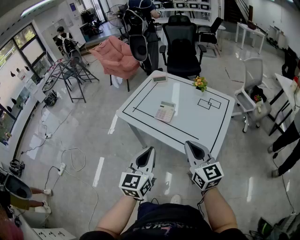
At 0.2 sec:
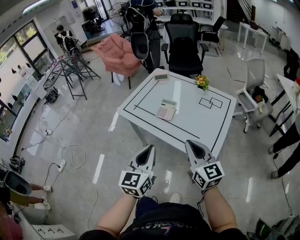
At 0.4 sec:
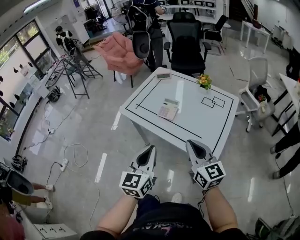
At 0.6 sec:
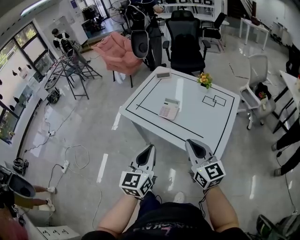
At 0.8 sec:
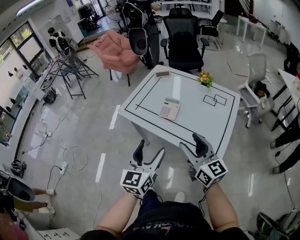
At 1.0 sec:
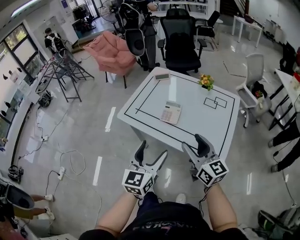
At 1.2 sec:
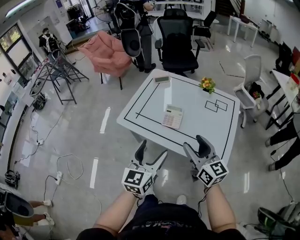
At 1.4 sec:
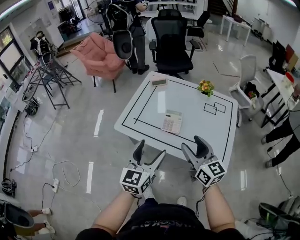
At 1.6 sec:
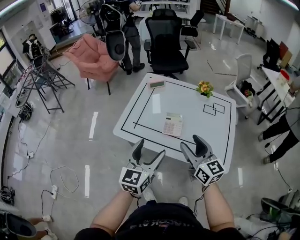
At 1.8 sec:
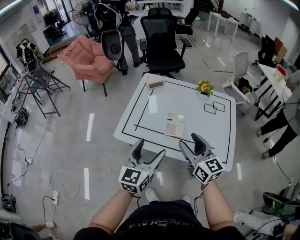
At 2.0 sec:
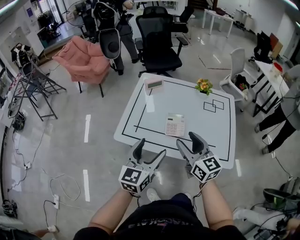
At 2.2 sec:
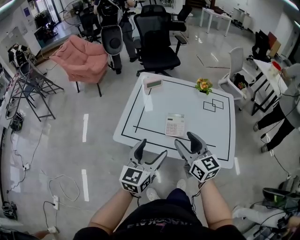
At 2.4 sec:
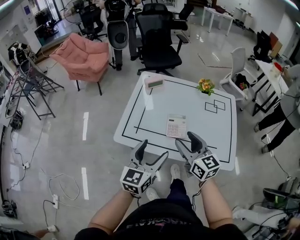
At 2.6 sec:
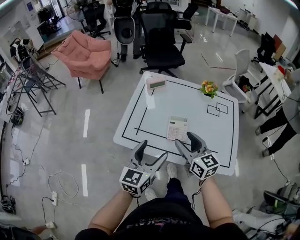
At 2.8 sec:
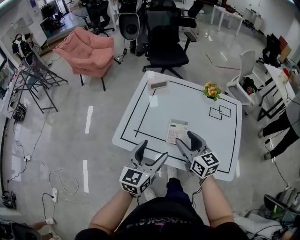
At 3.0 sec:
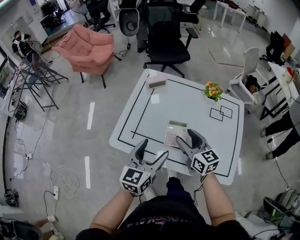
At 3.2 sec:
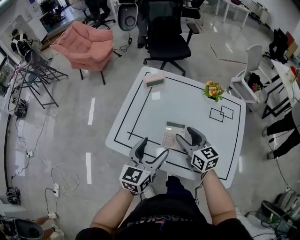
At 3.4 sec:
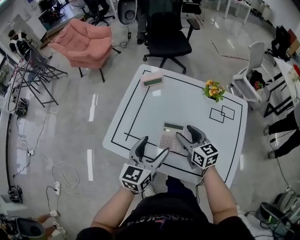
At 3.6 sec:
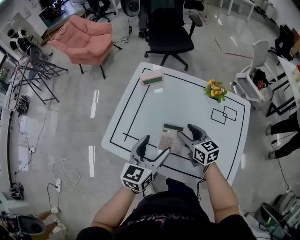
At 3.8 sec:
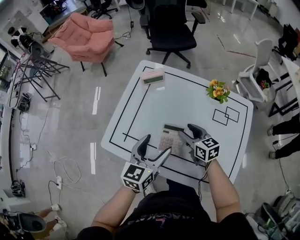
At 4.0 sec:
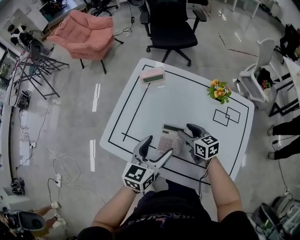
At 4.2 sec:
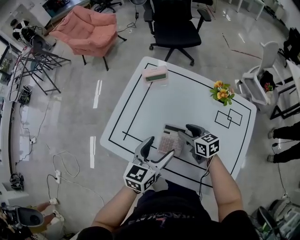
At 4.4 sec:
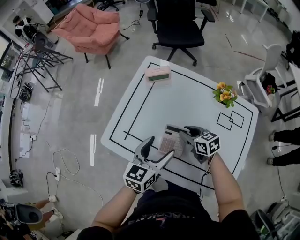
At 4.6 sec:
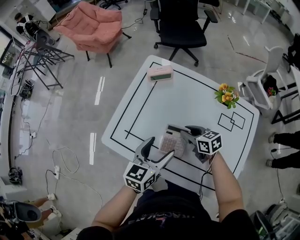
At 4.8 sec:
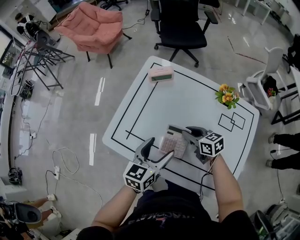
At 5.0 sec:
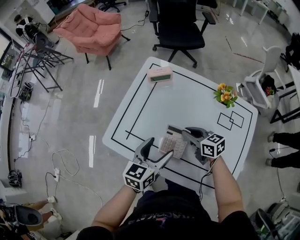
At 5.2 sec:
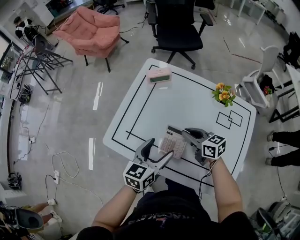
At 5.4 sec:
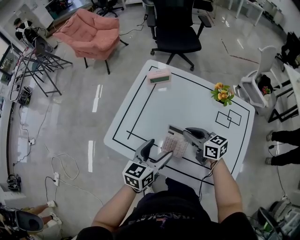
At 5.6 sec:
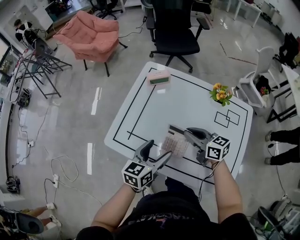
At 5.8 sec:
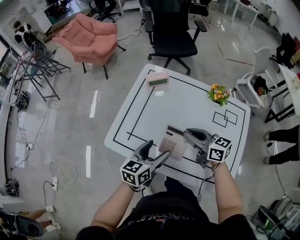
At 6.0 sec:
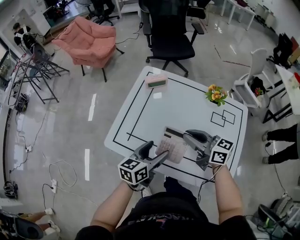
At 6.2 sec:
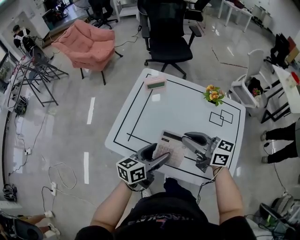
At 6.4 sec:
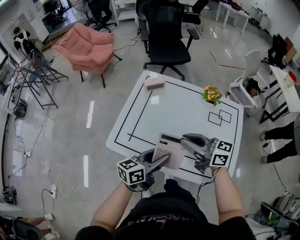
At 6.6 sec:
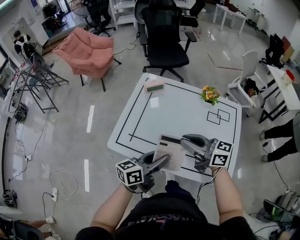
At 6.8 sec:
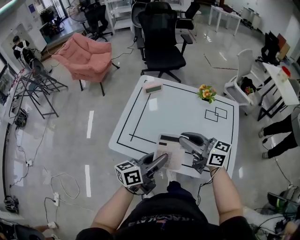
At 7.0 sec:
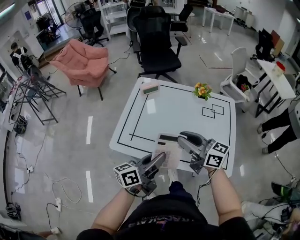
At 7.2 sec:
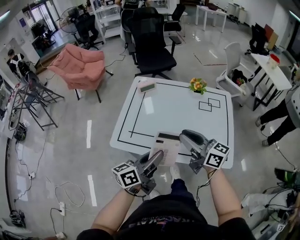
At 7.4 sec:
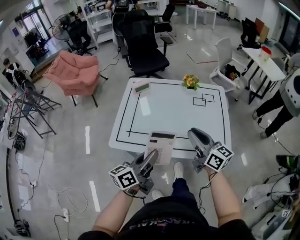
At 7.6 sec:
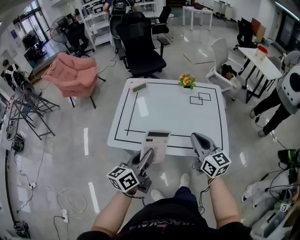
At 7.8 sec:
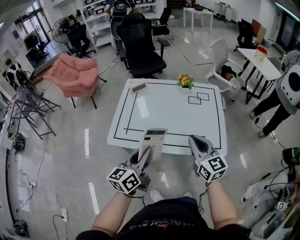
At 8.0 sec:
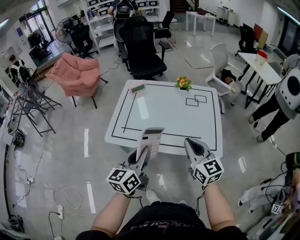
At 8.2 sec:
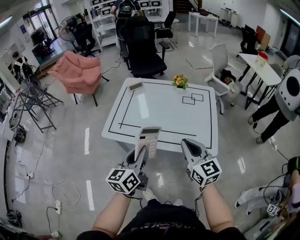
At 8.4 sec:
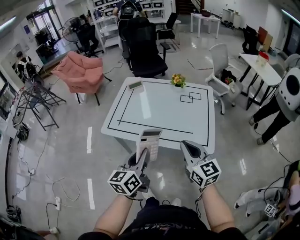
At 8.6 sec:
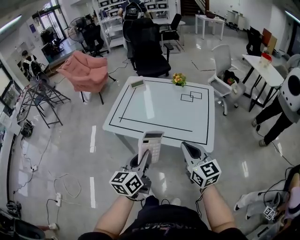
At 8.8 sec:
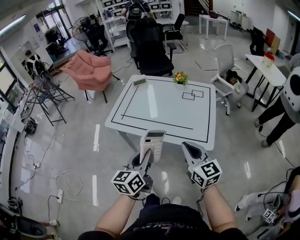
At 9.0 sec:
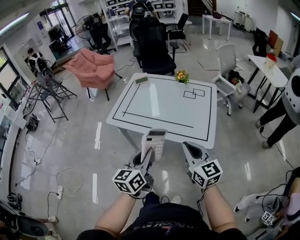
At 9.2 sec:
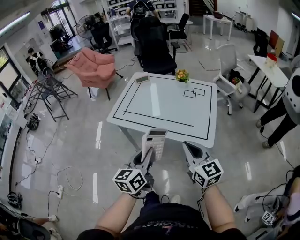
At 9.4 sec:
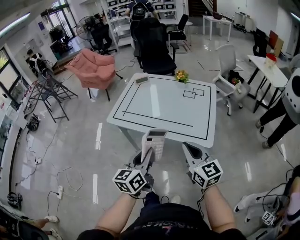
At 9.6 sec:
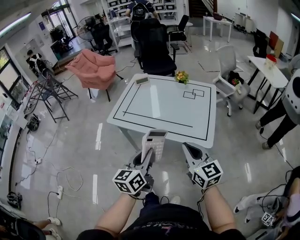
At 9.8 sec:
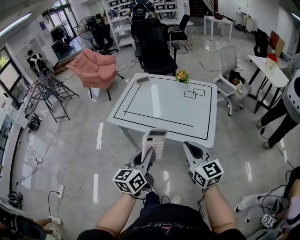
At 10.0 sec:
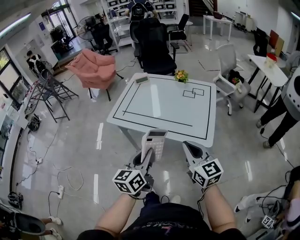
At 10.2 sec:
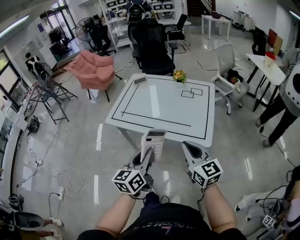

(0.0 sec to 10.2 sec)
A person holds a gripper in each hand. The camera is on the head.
0.0 sec - 1.4 sec: The two grippers go approximately 15 cm forward and to the left. The right gripper opens its fingers; the left gripper opens up.
1.4 sec - 3.0 sec: The right gripper goes approximately 20 cm forward and downward, while the left gripper is displaced forward by approximately 15 cm.
3.0 sec - 4.4 sec: The right gripper moves downward and forward, some 20 cm, rotates about 30 degrees, and closes up. Meanwhile the left gripper is displaced forward, to the right and downward by roughly 10 cm.
4.4 sec - 5.8 sec: The right gripper heads upward, covering some 15 cm, and turns by about 20 degrees.
5.8 sec - 7.2 sec: The two grippers go about 20 cm backward and upward. The left gripper swivels about 30 degrees, and closes its fingers, while the right gripper swivels about 20 degrees.
7.2 sec - 8.8 sec: The two grippers go some 25 cm backward and to the right. The left gripper rotates roughly 30 degrees; the right gripper turns by about 30 degrees.
8.8 sec - 10.2 sec: There are only small adjustments of the grippers.

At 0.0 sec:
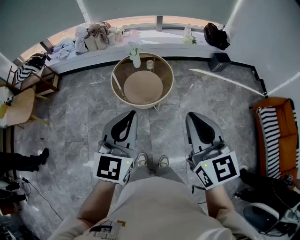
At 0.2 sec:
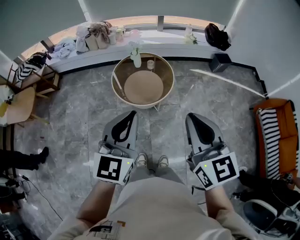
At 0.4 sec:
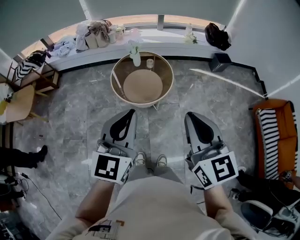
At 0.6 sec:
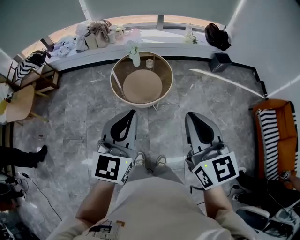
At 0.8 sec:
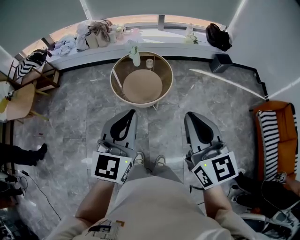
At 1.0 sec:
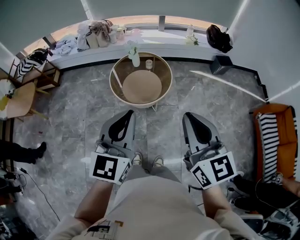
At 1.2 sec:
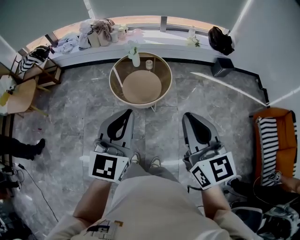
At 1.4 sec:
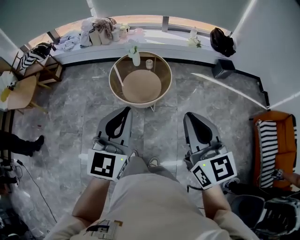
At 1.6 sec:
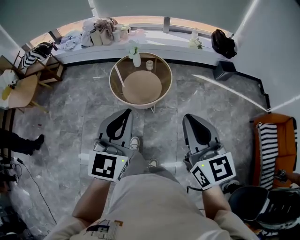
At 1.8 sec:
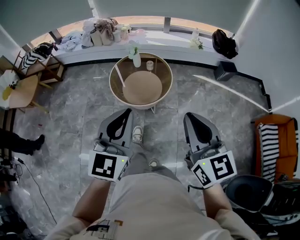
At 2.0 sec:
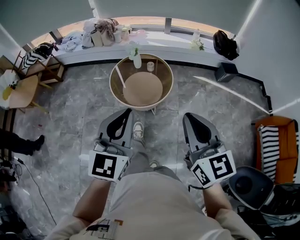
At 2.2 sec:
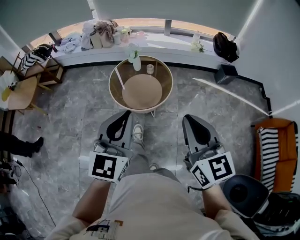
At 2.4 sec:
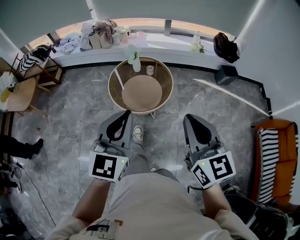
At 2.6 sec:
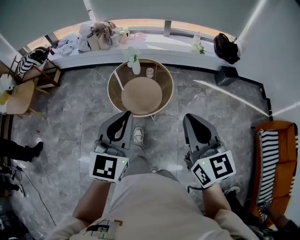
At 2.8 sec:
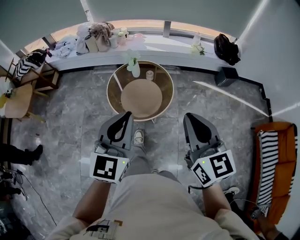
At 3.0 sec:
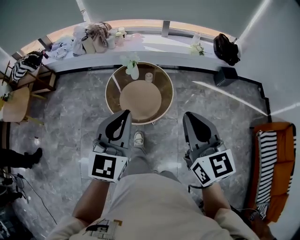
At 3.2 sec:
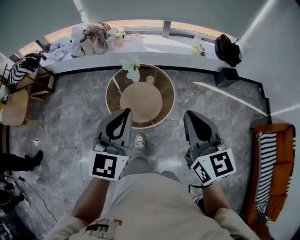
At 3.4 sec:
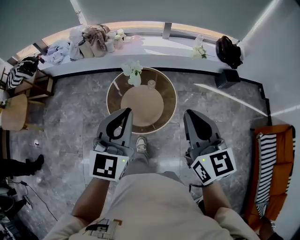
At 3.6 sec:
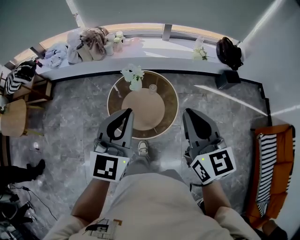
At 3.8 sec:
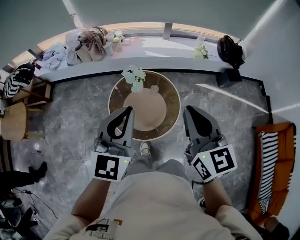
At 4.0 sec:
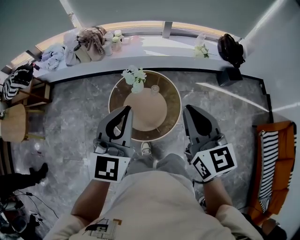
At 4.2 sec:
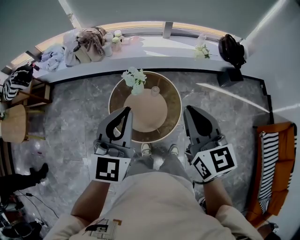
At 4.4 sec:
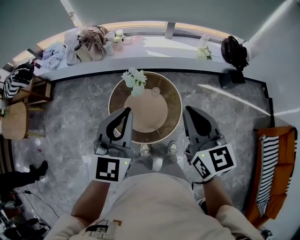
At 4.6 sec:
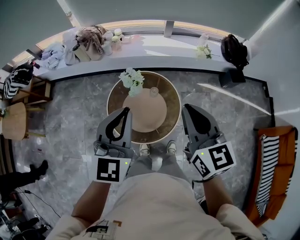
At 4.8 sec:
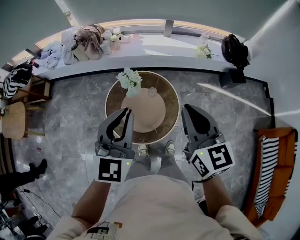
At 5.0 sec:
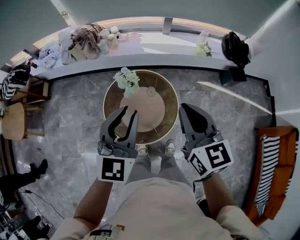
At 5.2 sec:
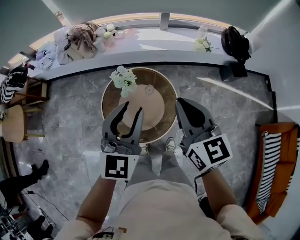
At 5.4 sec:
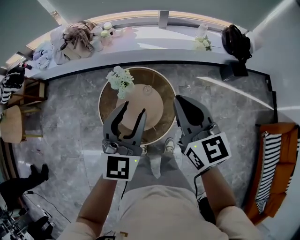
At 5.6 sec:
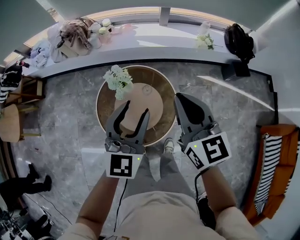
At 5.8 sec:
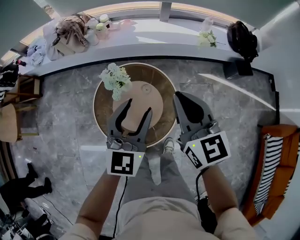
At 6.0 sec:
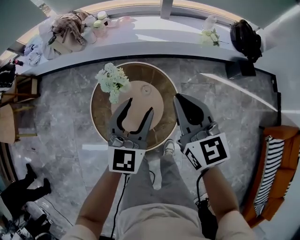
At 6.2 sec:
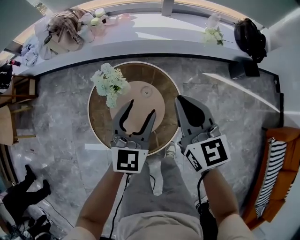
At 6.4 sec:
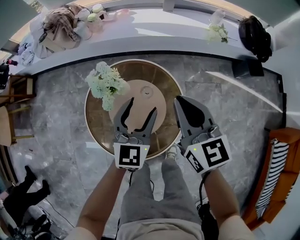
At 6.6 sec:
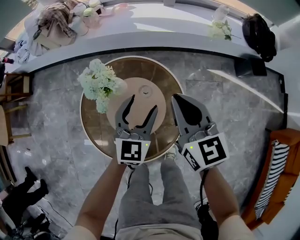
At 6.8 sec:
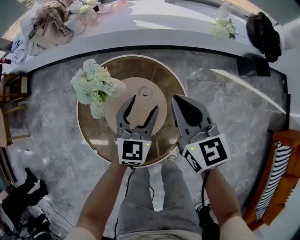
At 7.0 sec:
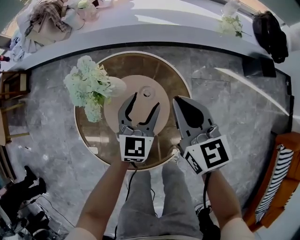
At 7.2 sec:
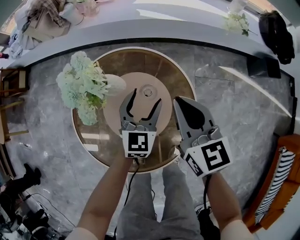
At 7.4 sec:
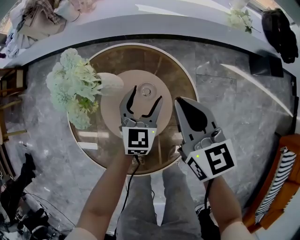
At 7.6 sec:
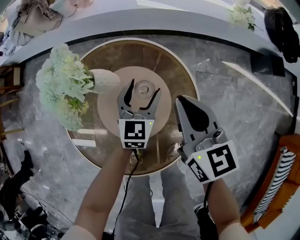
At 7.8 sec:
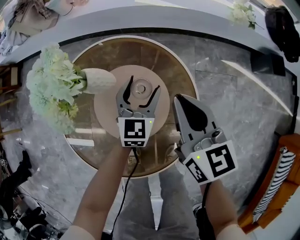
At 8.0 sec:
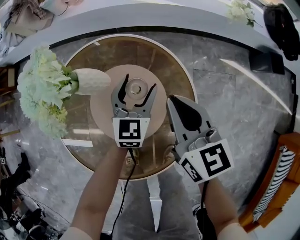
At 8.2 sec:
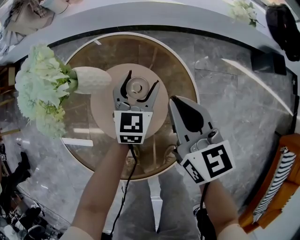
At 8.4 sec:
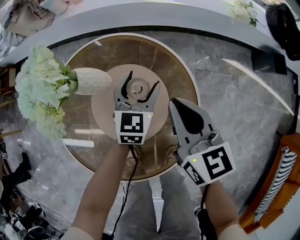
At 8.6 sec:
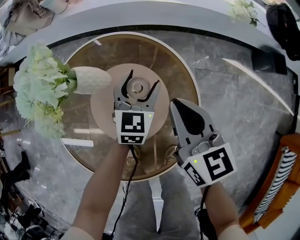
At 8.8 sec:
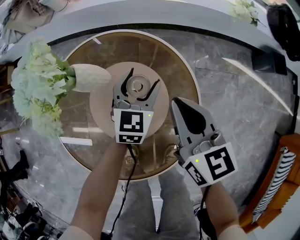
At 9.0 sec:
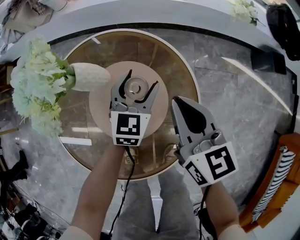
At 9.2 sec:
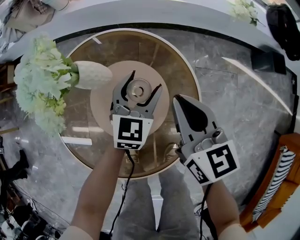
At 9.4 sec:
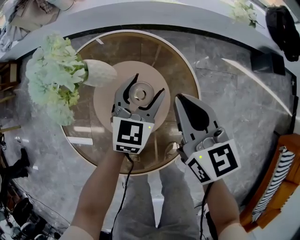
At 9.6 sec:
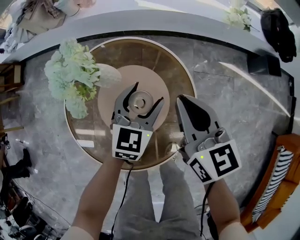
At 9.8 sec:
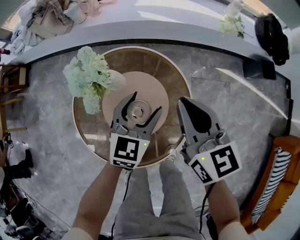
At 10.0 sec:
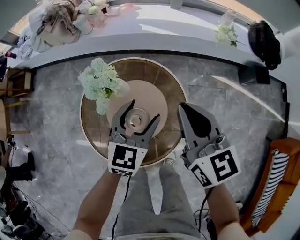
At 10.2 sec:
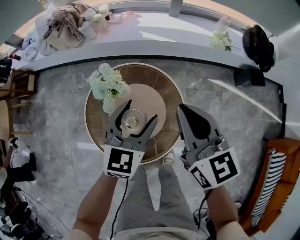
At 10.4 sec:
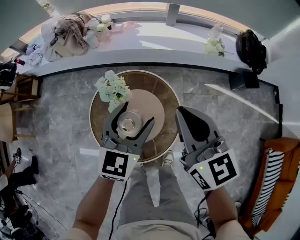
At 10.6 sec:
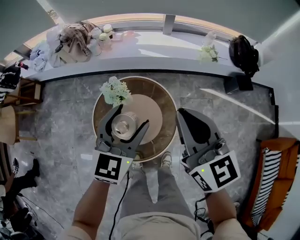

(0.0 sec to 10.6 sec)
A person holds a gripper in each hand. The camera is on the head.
0.0 sec - 1.6 sec: Both grippers travel together to the right, about 10 cm.
1.6 sec - 3.0 sec: Both grippers move forward, some 20 cm.
3.0 sec - 4.6 sec: Both grippers travel together forward, roughly 25 cm.
4.6 sec - 6.0 sec: The left gripper is displaced downward, forward and to the right by approximately 30 cm, and opens up, while the right gripper heads downward and forward, covering roughly 25 cm.
6.0 sec - 7.6 sec: The two grippers go some 35 cm downward.
7.6 sec - 9.0 sec: The right gripper ends up about 5 cm from where it was.
9.0 sec - 10.6 sec: Both grippers travel together upward, some 50 cm.

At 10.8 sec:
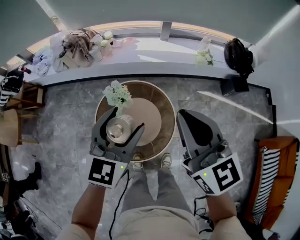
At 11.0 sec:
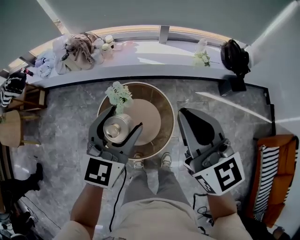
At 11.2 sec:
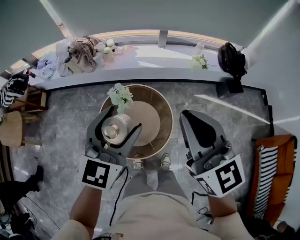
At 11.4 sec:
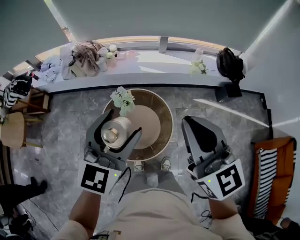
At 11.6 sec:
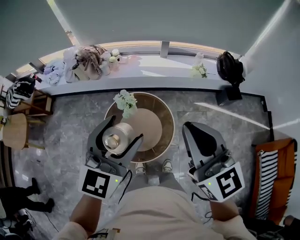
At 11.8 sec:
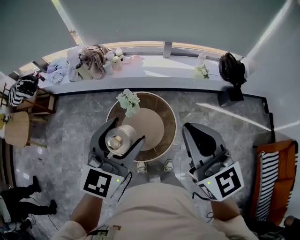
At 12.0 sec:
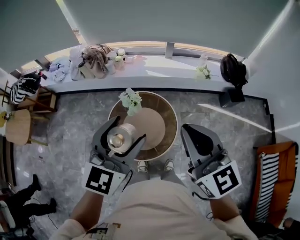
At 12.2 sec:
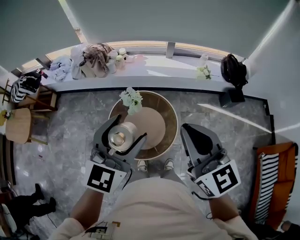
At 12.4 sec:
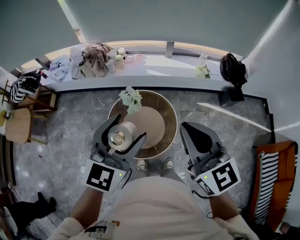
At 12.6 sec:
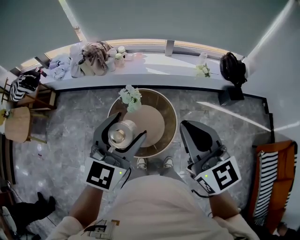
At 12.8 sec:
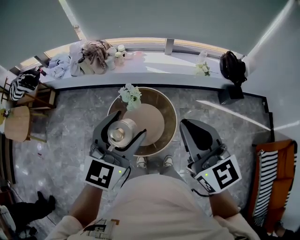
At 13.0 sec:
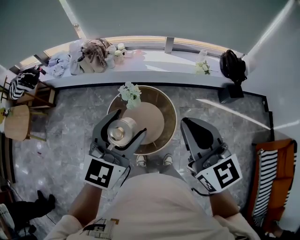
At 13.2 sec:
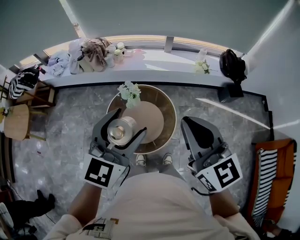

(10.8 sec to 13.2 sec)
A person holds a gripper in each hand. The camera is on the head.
10.8 sec - 12.0 sec: The grippers both shift upward and backward by approximately 20 cm.
12.0 sec - 13.2 sec: Both grippers stay put.
